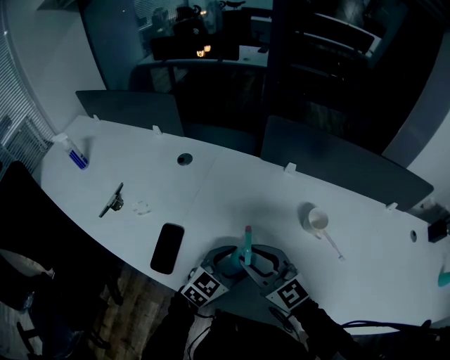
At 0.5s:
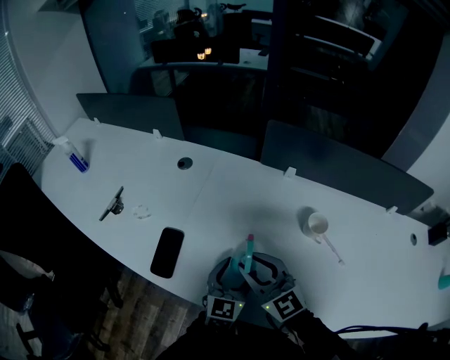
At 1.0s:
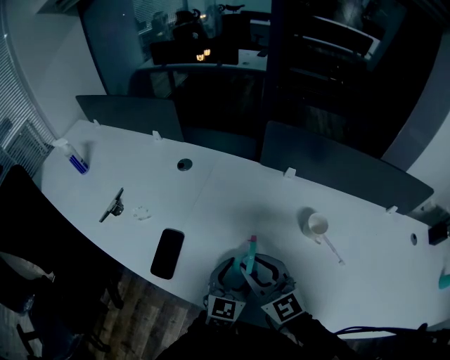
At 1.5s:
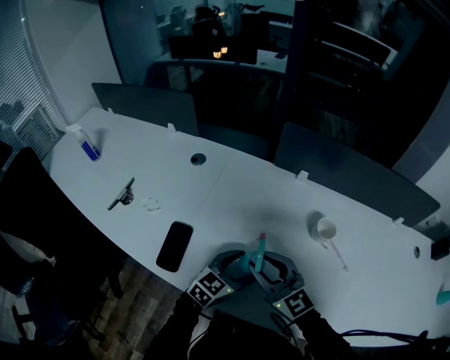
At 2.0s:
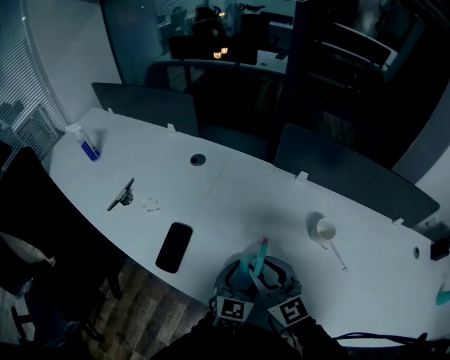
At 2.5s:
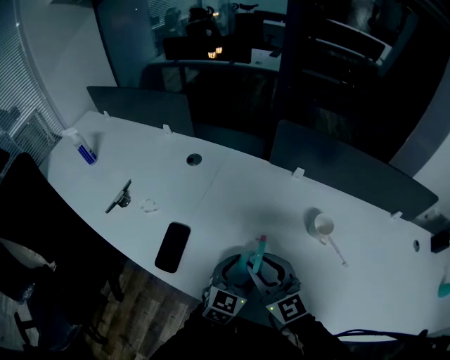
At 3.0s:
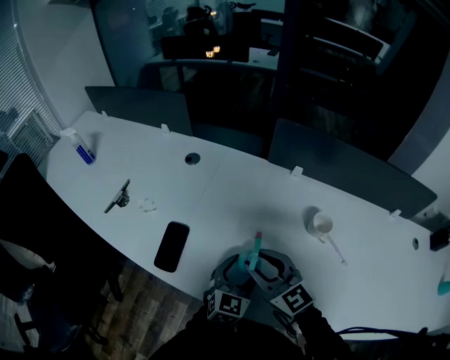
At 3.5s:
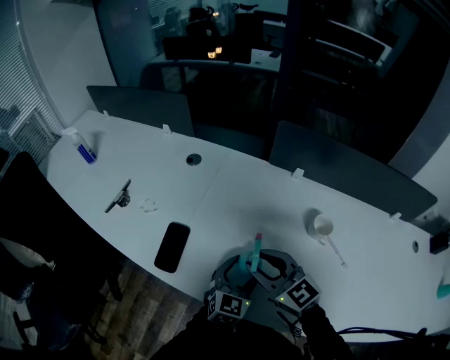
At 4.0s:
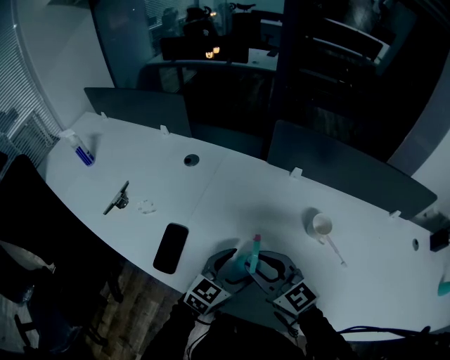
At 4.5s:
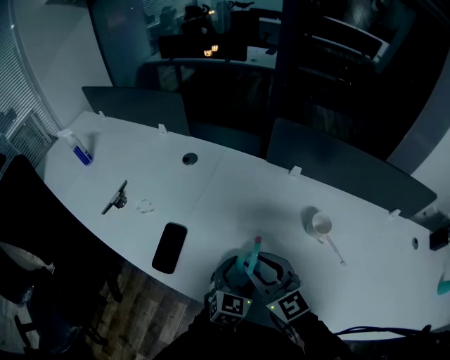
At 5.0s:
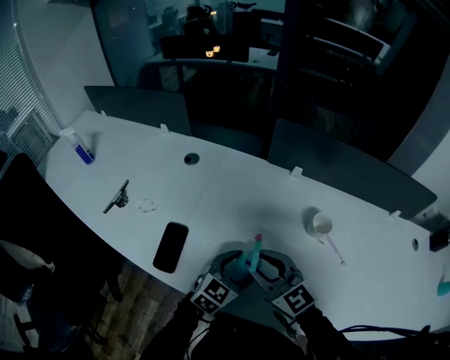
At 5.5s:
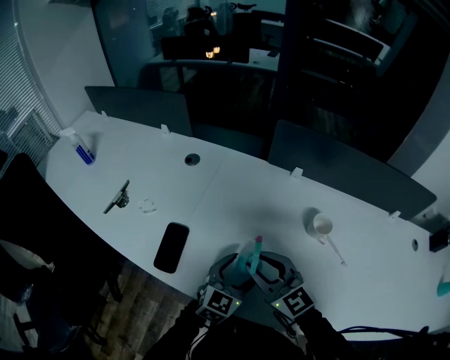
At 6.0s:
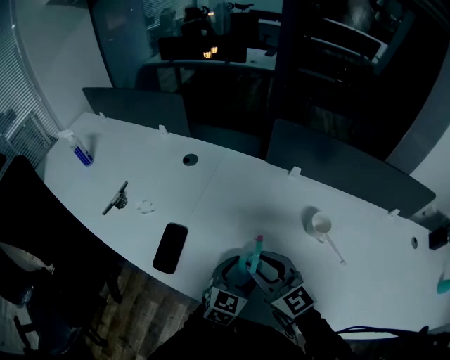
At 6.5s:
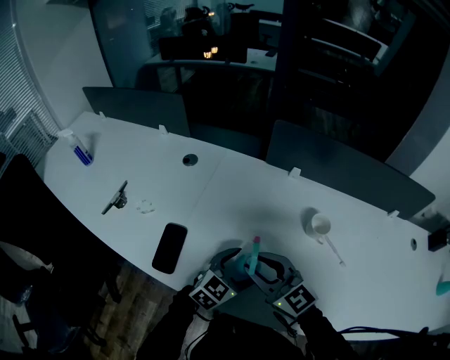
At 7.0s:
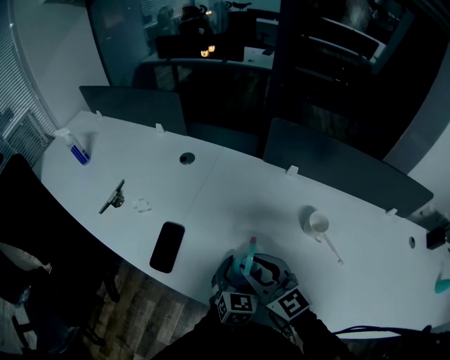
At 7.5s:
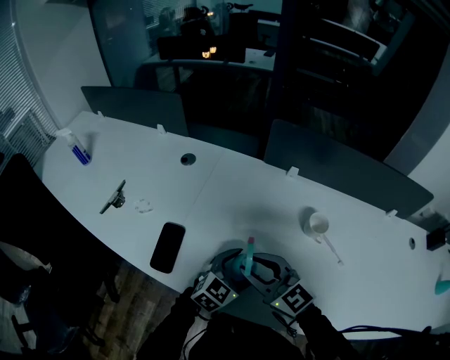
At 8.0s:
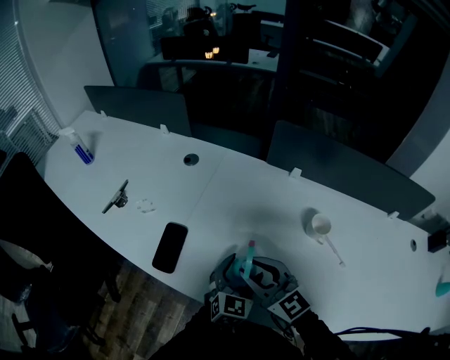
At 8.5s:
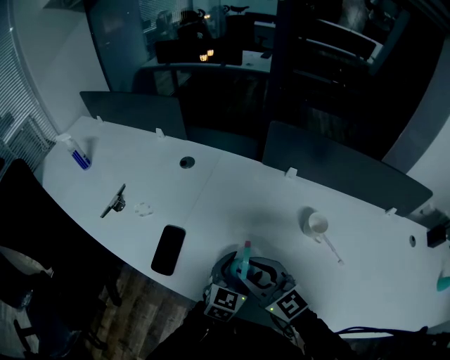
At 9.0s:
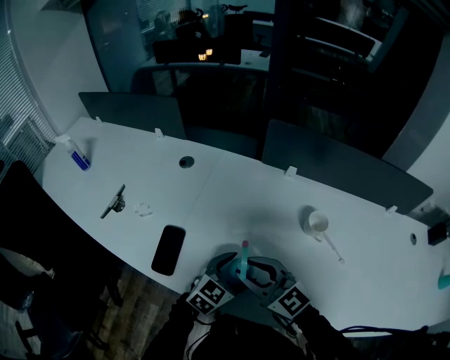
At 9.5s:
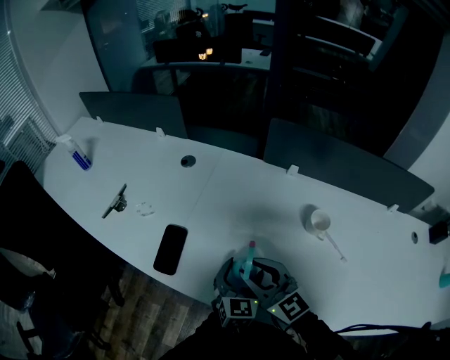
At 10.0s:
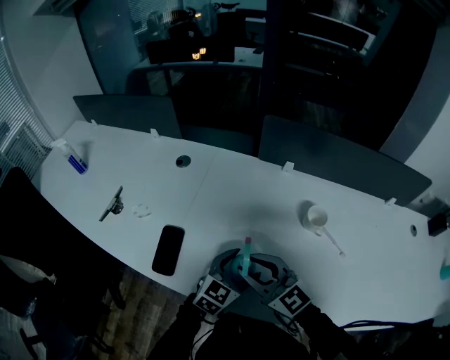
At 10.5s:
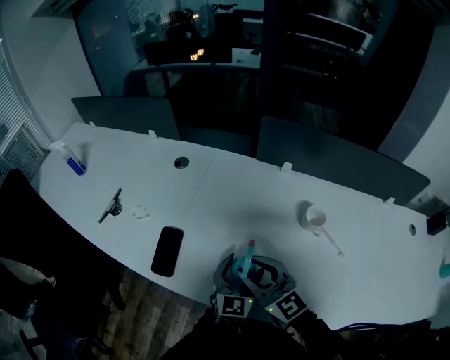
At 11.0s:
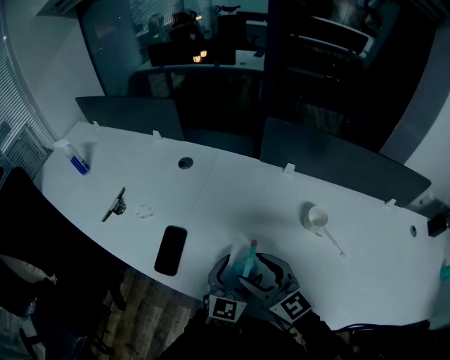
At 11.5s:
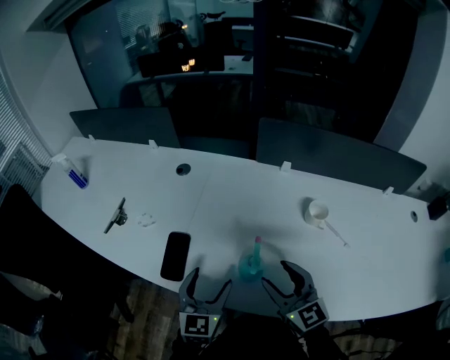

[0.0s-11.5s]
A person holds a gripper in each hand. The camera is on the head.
0.0s to 2.0s: The left gripper rotates roughly 30 degrees.
2.0s to 4.0s: The left gripper turns by some 20 degrees.
7.5s to 9.5s: The left gripper changes its angle by about 30 degrees.
9.5s to 11.5s: The left gripper heads to the left and upward, covering about 15 cm. The right gripper moves approximately 5 cm, and opens its fingers.

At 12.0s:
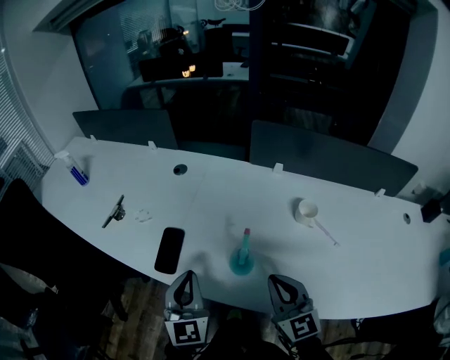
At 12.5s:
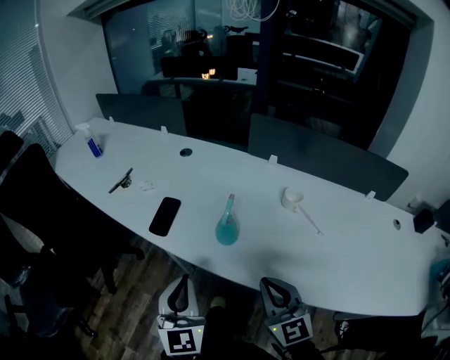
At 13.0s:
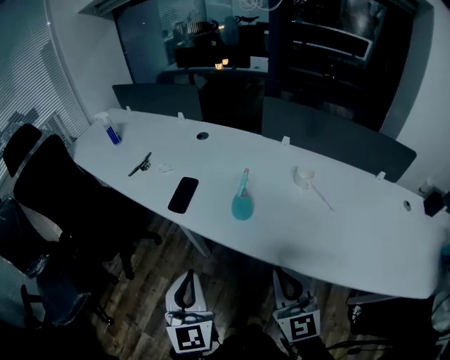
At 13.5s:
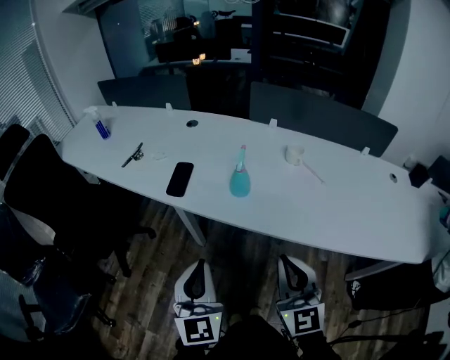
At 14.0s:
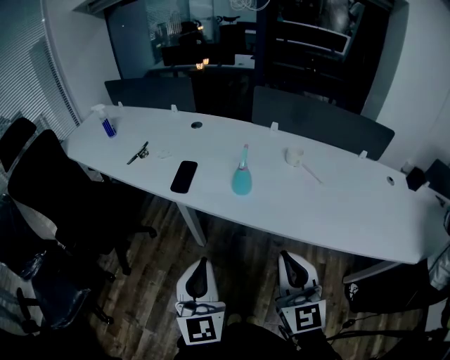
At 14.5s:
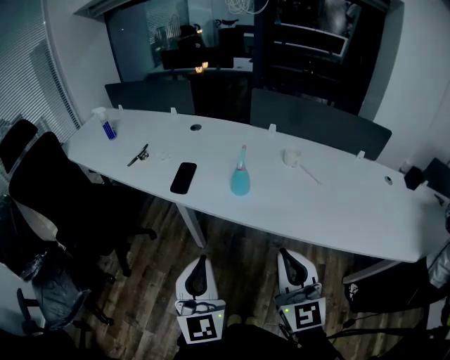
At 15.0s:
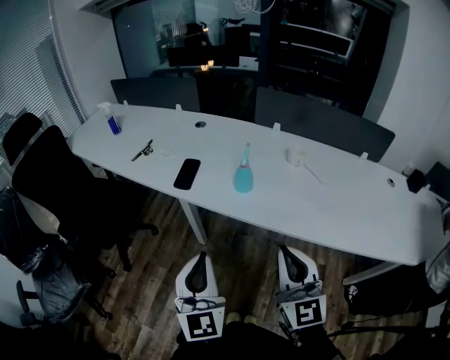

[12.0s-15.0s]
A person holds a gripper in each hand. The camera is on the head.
12.0s to 13.5s: The grippers both shift backward by some 25 cm.
13.5s to 15.0s: The left gripper moves some 5 cm. The right gripper moves about 5 cm.

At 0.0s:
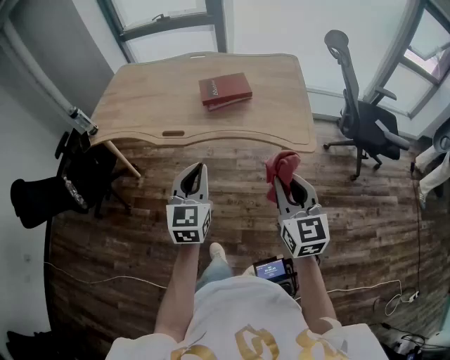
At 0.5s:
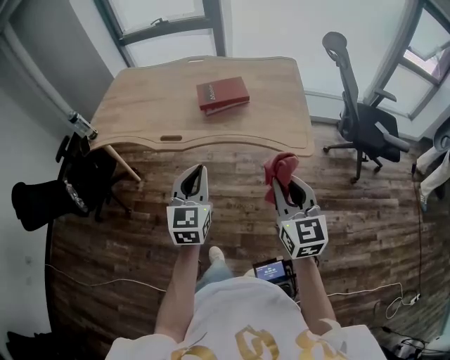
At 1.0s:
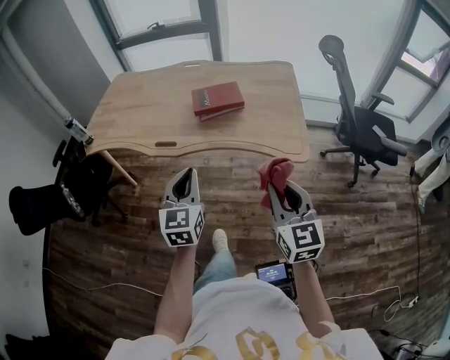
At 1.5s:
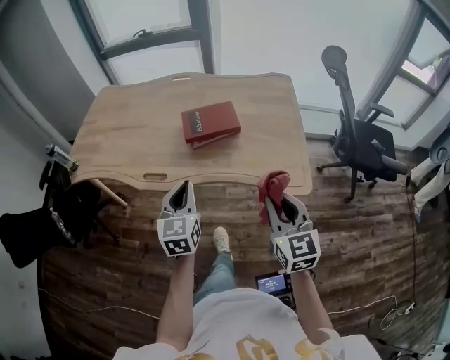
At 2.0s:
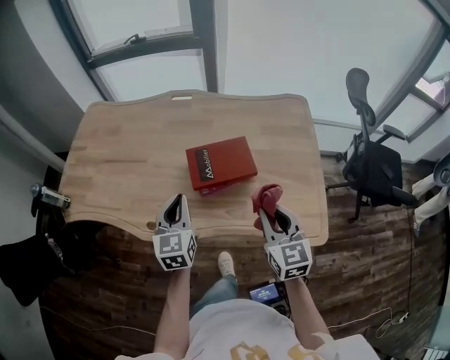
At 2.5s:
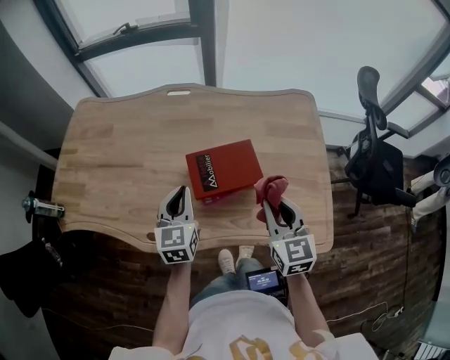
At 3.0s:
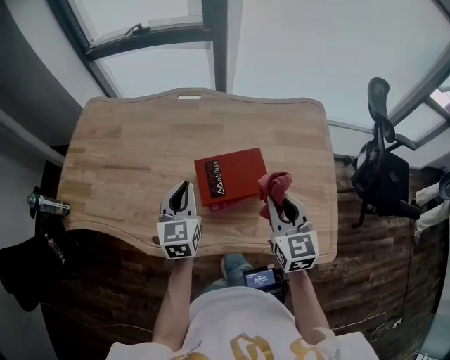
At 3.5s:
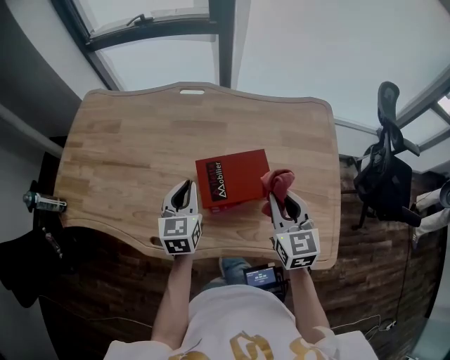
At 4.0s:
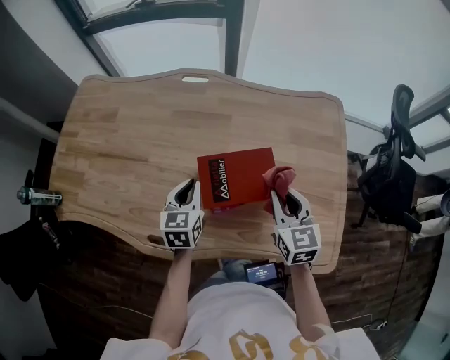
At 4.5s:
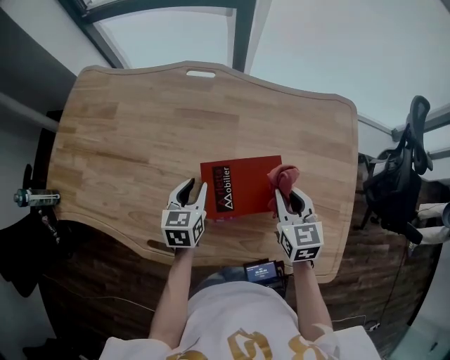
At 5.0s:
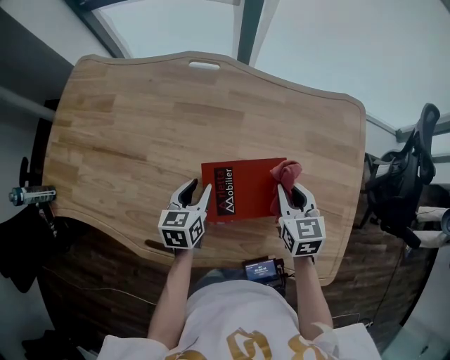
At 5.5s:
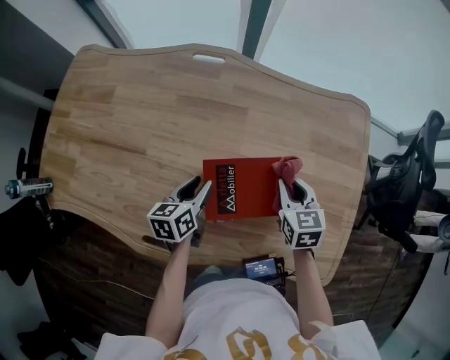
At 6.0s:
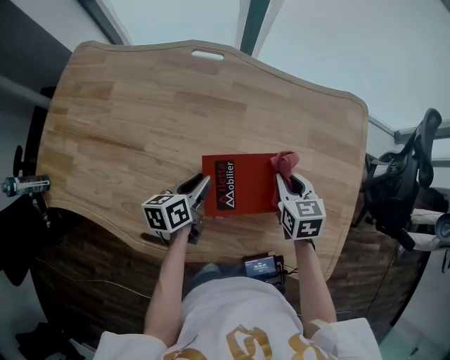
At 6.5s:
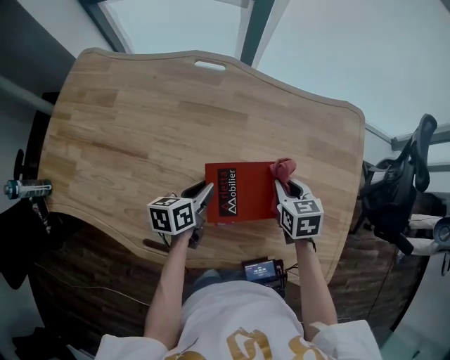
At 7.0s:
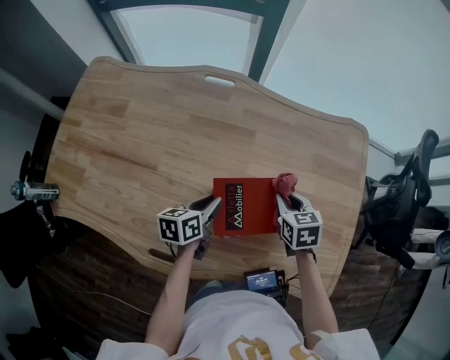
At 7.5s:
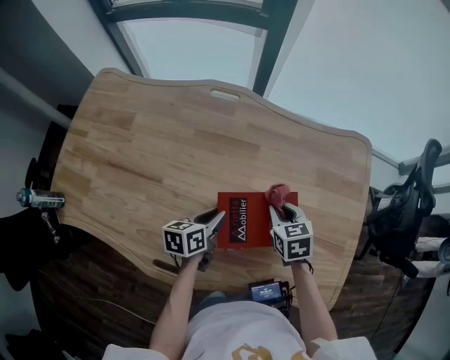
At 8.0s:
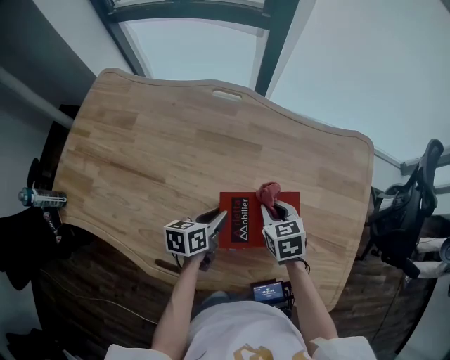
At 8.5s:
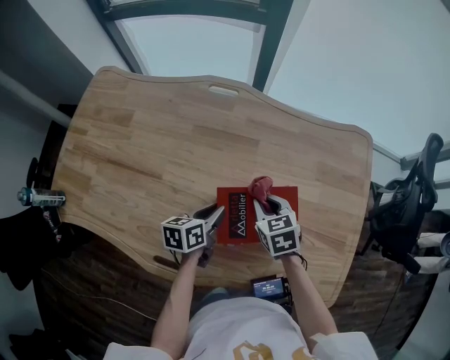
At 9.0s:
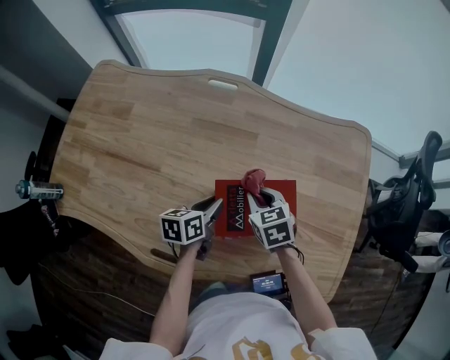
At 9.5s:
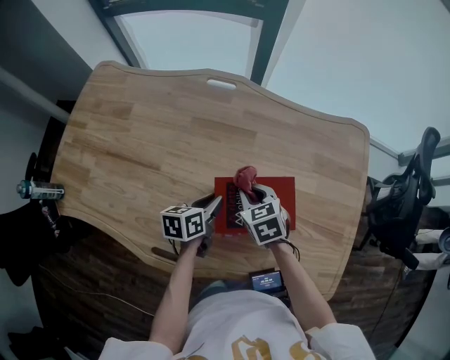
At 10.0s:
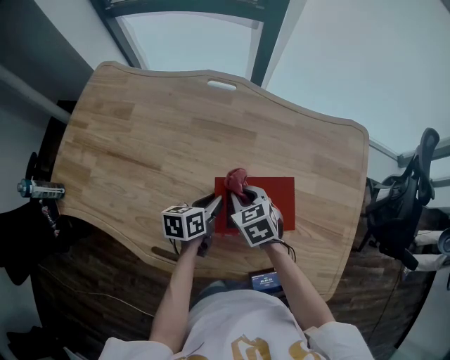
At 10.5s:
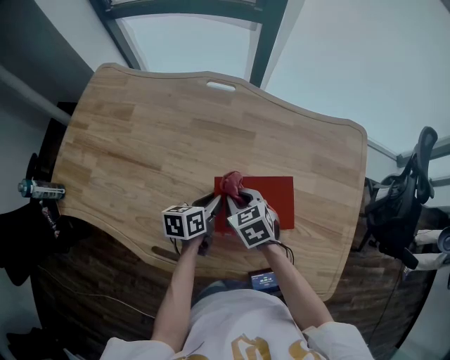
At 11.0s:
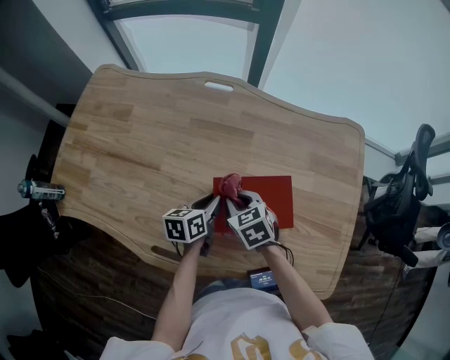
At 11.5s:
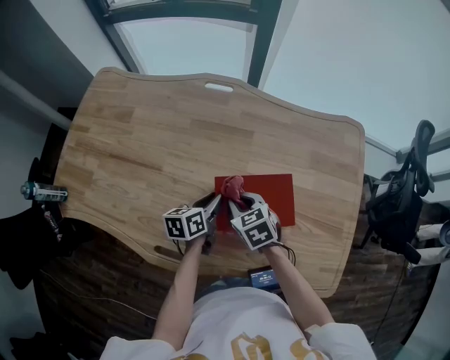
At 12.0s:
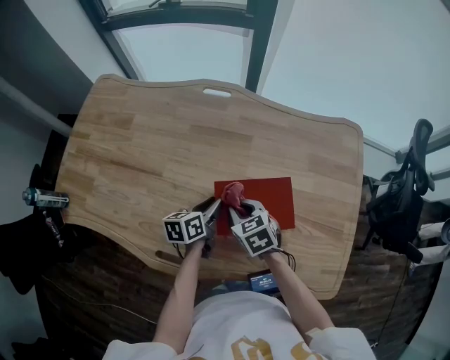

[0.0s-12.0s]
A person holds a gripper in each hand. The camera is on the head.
0.0s to 2.0s: Both grippers travel together forward, roughly 35 cm.
2.0s to 4.0s: The right gripper heads forward, covering roughly 20 cm; the left gripper shifts some 20 cm forward and downward.
4.0s to 6.0s: The right gripper heads downward and forward, covering some 15 cm. The left gripper goes roughly 5 cm downward, changes its angle by roughly 40 degrees, and opens its fingers.
6.0s to 8.0s: The right gripper is displaced to the left by approximately 10 cm.
8.0s to 10.0s: The right gripper is displaced to the left by some 10 cm.
10.0s to 12.0s: The grippers stay close to where they were, moving slightly.

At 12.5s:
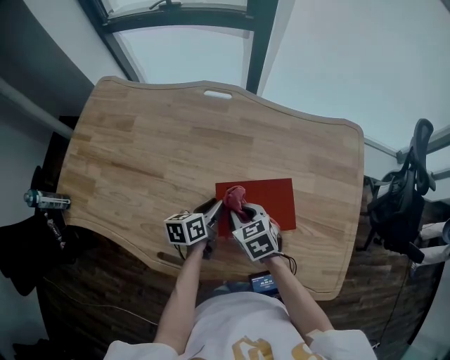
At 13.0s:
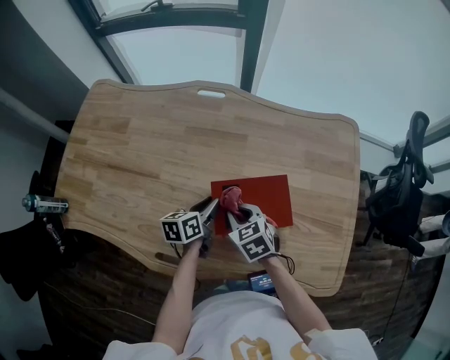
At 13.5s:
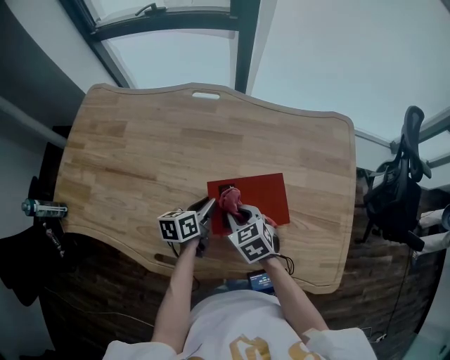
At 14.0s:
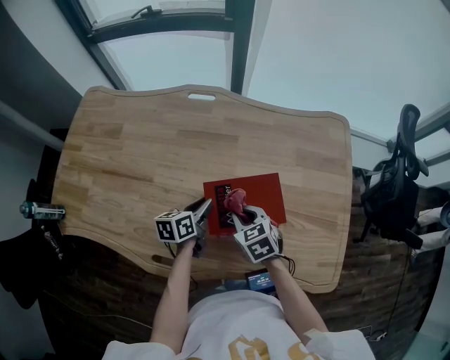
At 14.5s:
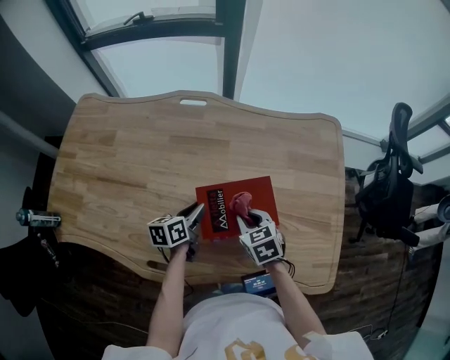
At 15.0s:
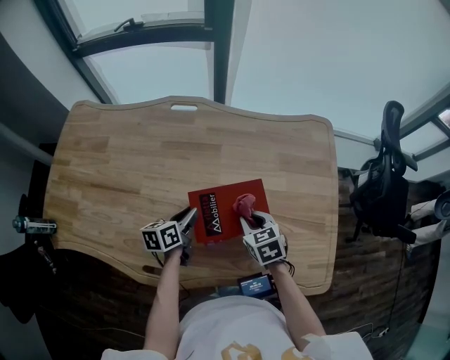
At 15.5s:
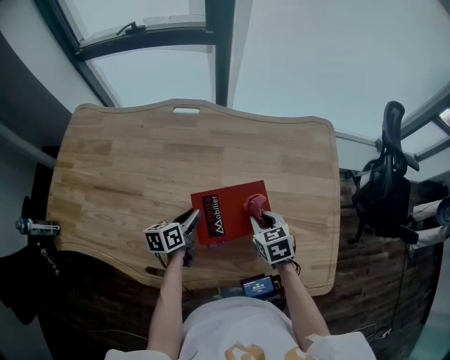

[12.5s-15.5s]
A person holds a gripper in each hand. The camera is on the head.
12.5s to 14.0s: The grippers make only small movements.
14.0s to 15.5s: The right gripper moves to the right, about 10 cm.
